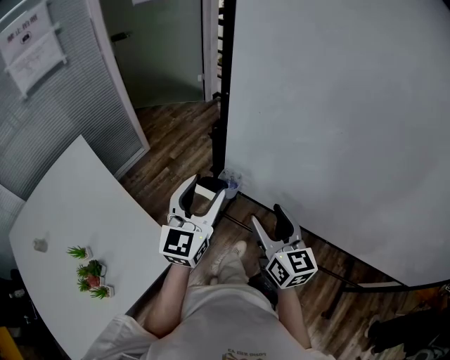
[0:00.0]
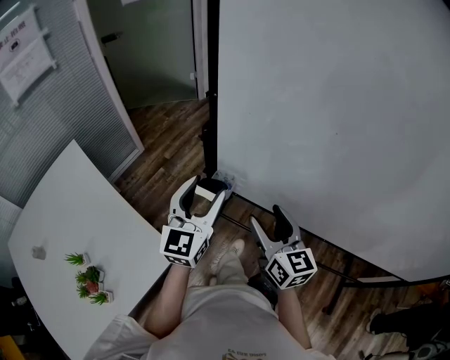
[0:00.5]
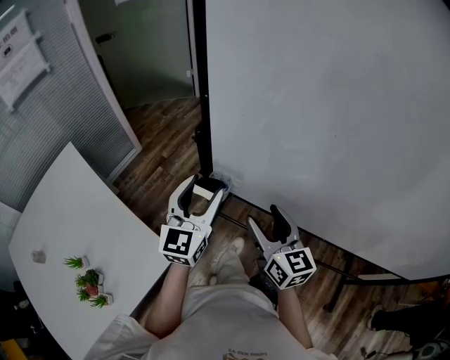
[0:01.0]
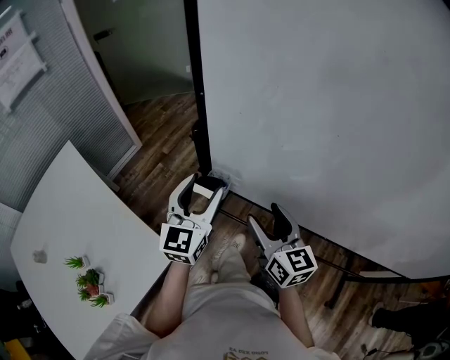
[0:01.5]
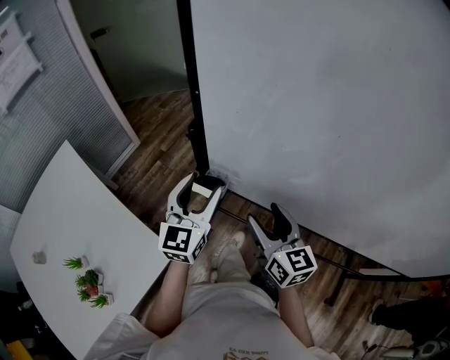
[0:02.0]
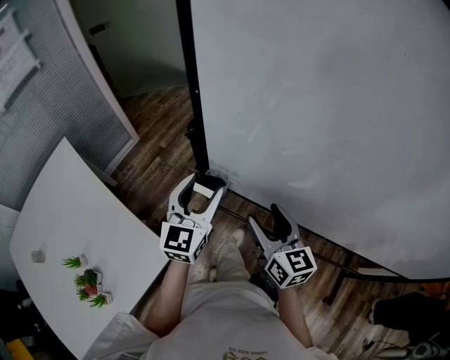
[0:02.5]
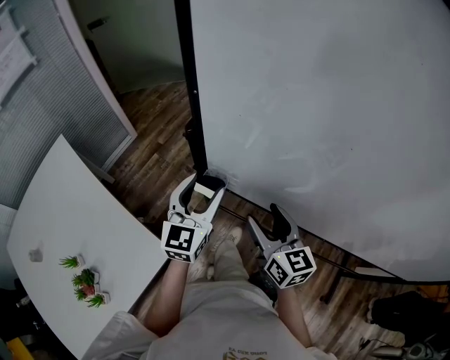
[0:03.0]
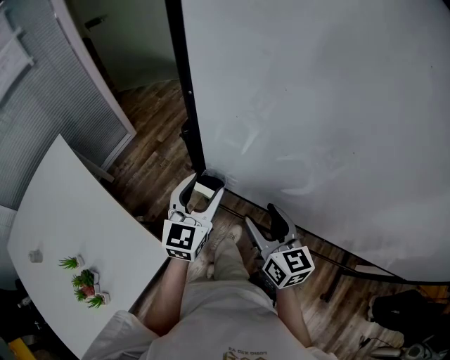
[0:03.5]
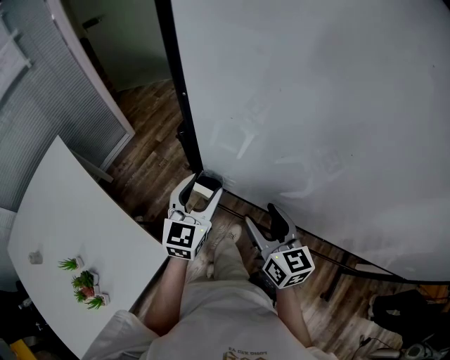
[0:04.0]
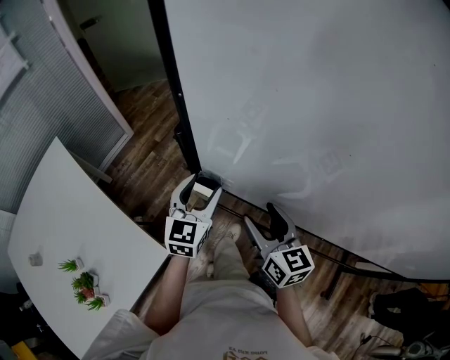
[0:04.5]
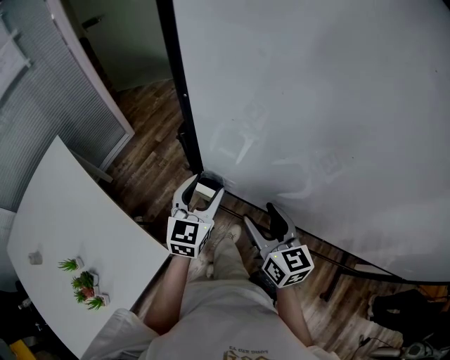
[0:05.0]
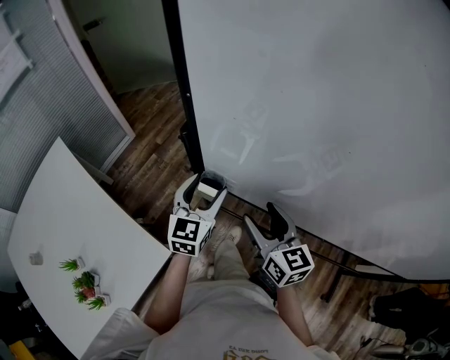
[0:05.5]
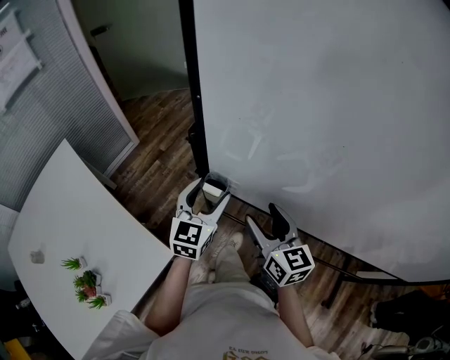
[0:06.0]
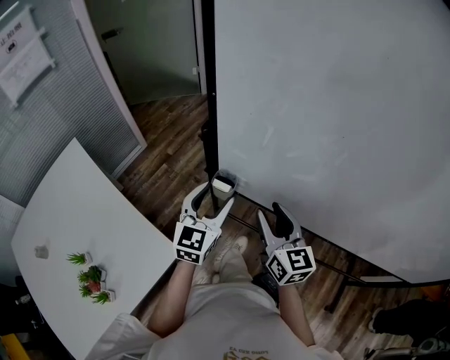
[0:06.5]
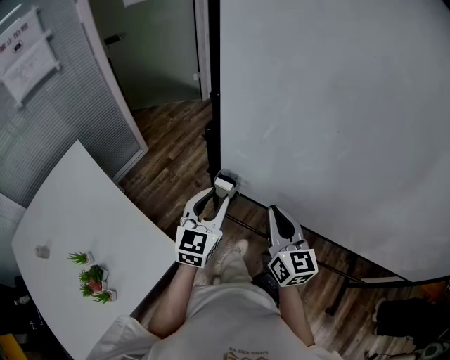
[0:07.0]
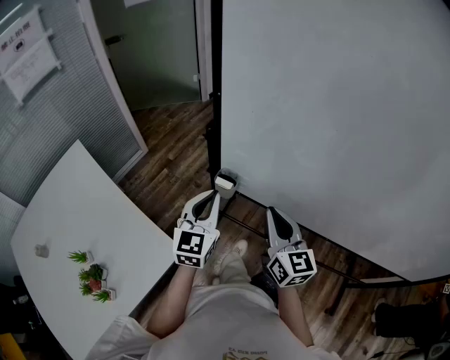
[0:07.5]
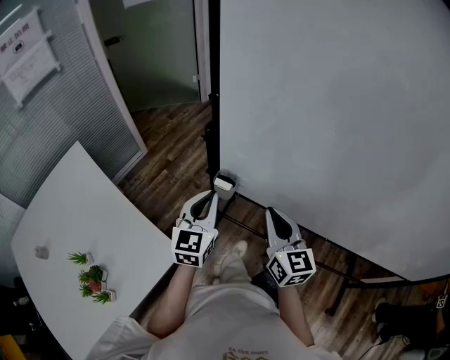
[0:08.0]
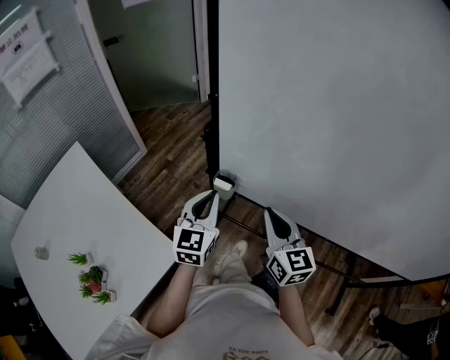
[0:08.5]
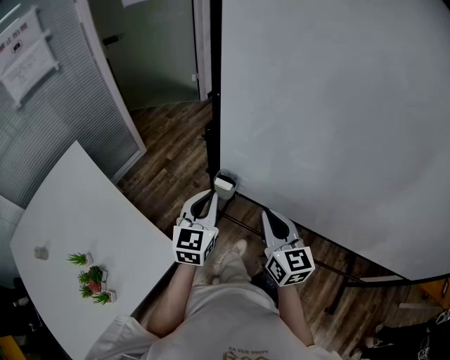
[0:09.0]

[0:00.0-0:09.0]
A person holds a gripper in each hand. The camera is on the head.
0:00.0 to 0:02.0: The left gripper changes place by roughly 5 cm.
0:02.0 to 0:04.5: The left gripper heads downward, covering approximately 5 cm.
0:04.5 to 0:07.0: The left gripper moves backward, some 10 cm; the right gripper is displaced upward by some 5 cm, and closes.
0:07.0 to 0:09.0: The left gripper closes.

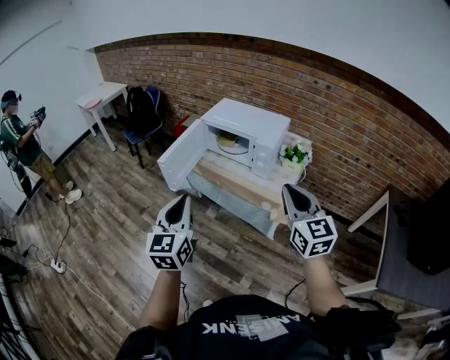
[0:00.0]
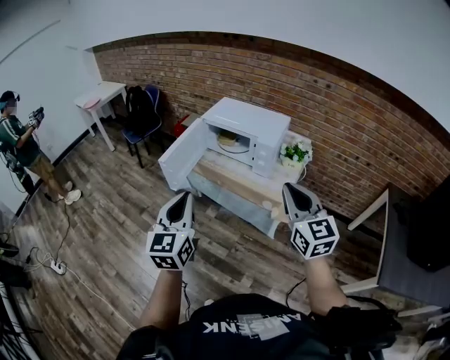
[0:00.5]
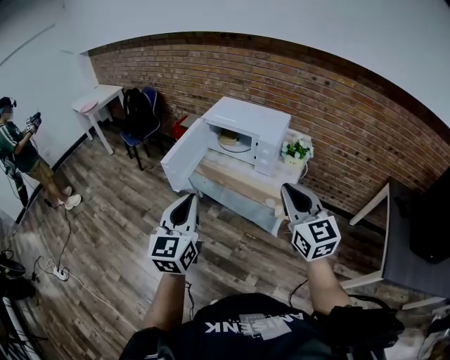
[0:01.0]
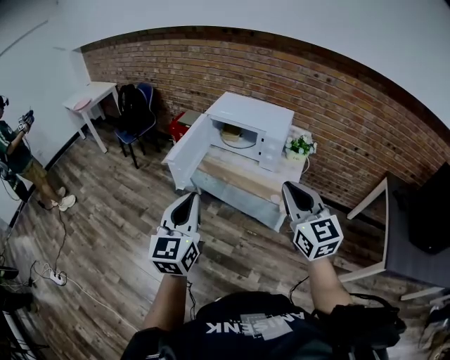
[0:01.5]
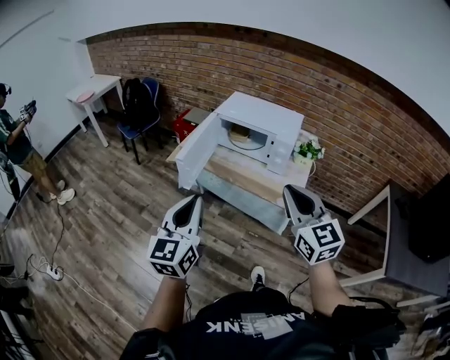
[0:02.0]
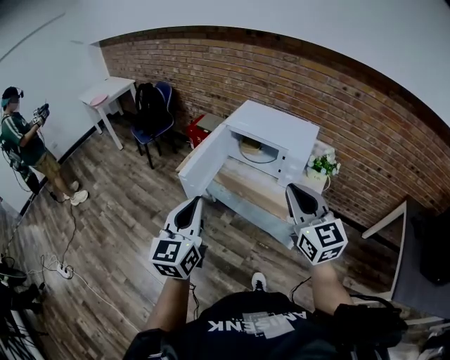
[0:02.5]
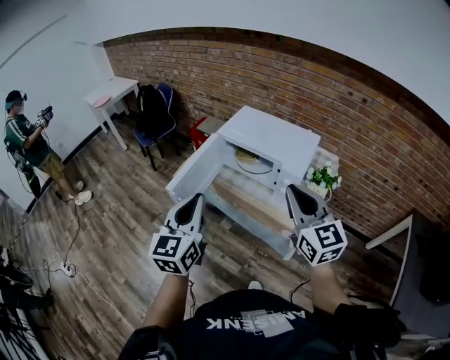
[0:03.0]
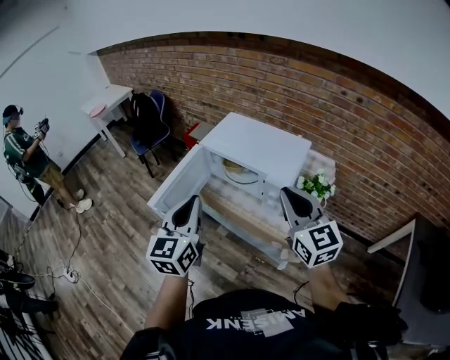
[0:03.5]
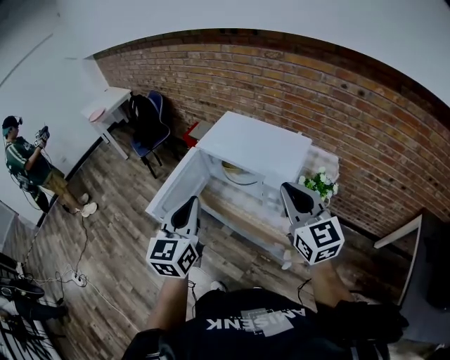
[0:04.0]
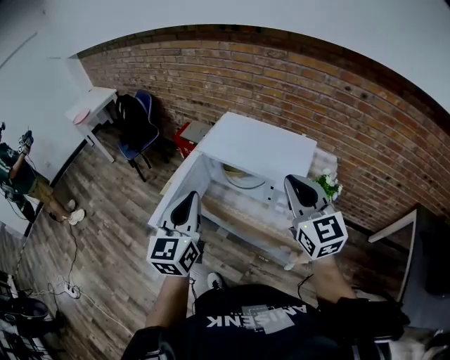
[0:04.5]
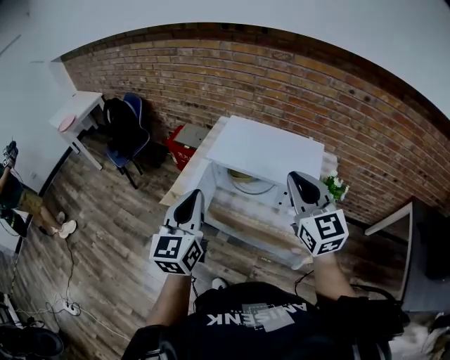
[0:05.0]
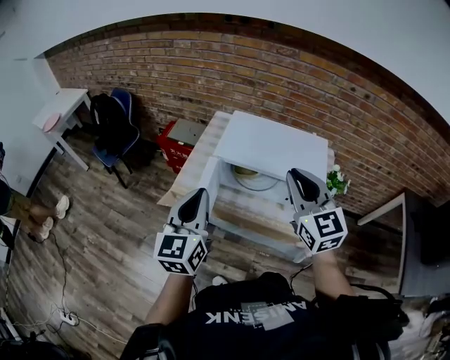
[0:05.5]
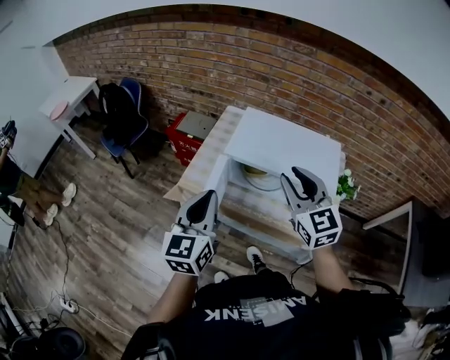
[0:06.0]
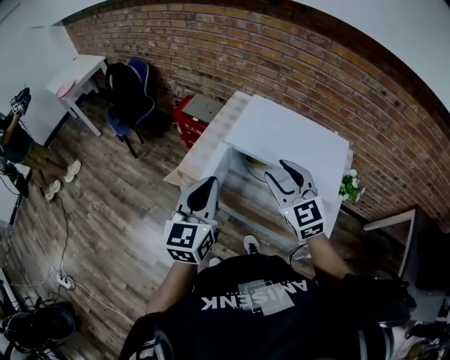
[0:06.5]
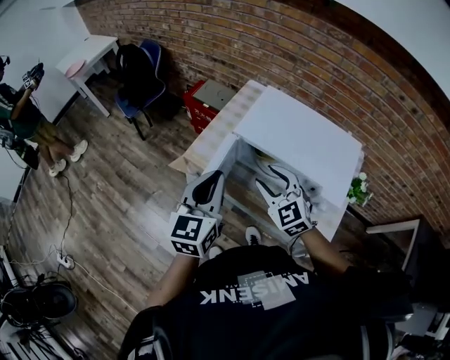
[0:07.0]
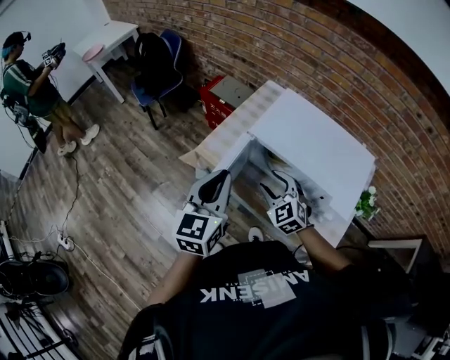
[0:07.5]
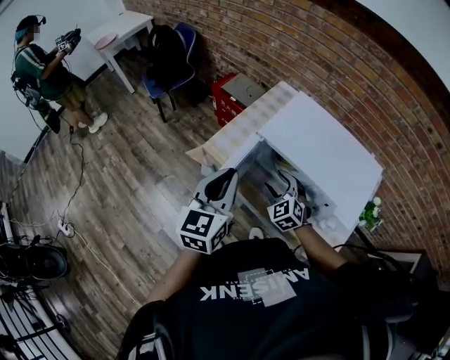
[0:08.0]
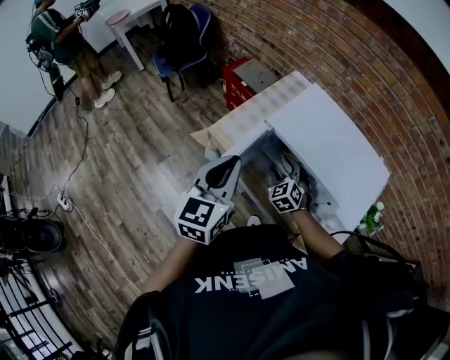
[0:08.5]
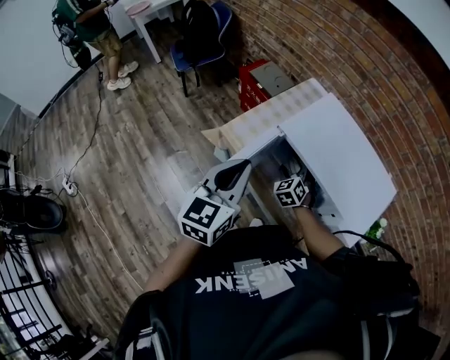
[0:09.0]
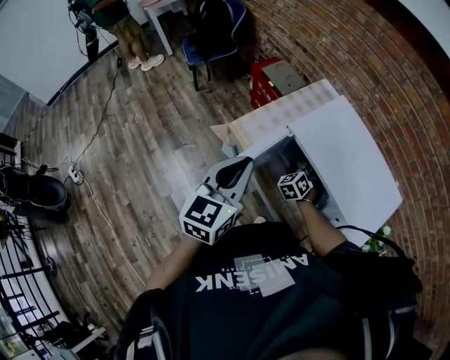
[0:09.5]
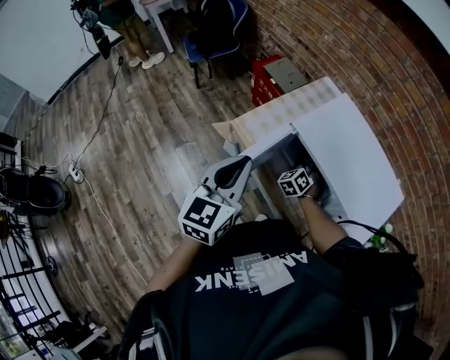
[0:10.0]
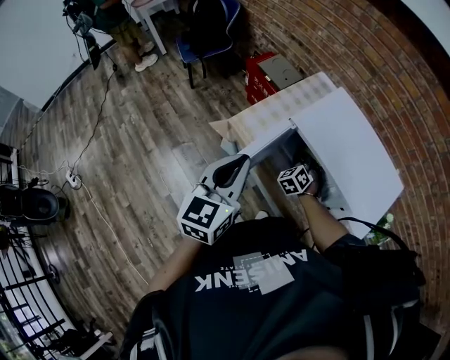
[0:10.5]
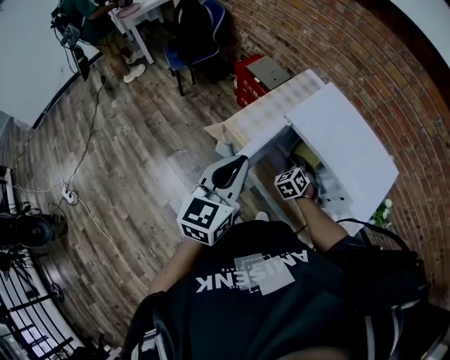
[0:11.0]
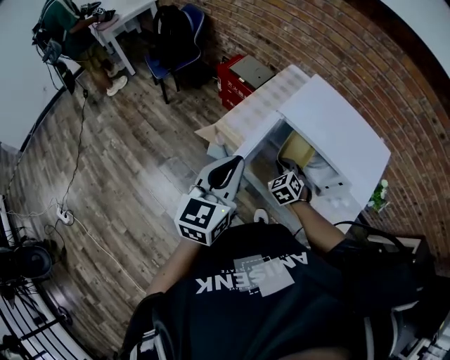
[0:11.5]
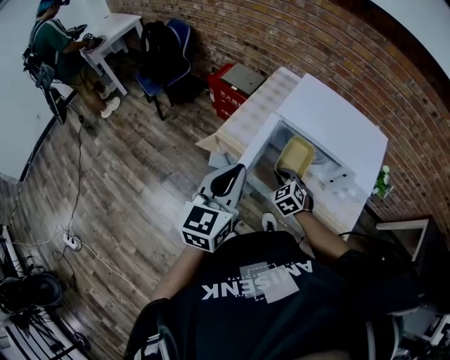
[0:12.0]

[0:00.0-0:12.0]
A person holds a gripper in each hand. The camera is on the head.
0:00.0 to 0:02.0: The grippers both shift to the left by some 15 cm.
0:02.0 to 0:04.0: Both grippers travel together forward and to the right, about 35 cm.
0:04.0 to 0:06.0: The grippers both shift to the left and forward by approximately 25 cm. The right gripper opens up.
0:06.0 to 0:08.0: The left gripper changes place by approximately 5 cm. The right gripper goes about 25 cm downward, turns by some 40 degrees, and opens.
0:08.0 to 0:10.0: The right gripper travels forward and downward by some 15 cm, changes its angle by approximately 20 degrees, and closes.
0:10.0 to 0:12.0: The left gripper is displaced backward by about 5 cm, while the right gripper moves backward, approximately 20 cm, and changes its angle by about 20 degrees.

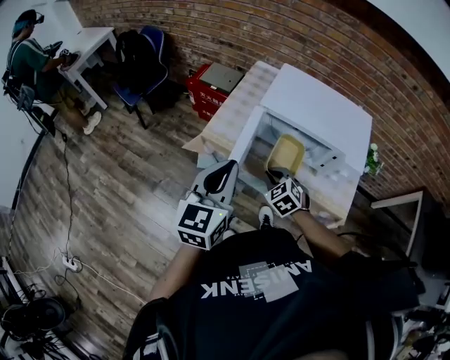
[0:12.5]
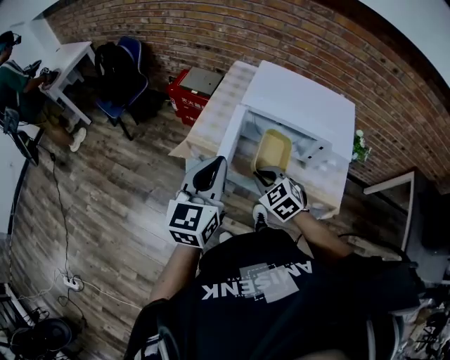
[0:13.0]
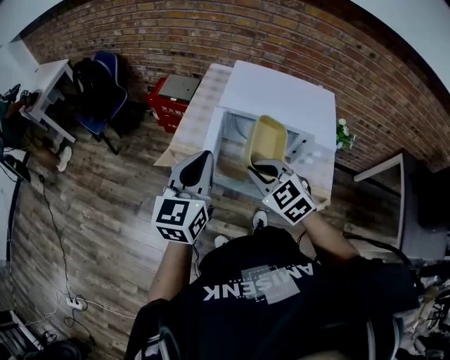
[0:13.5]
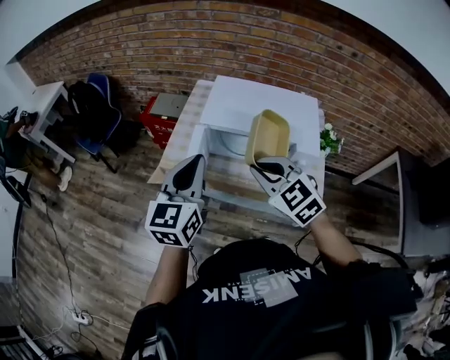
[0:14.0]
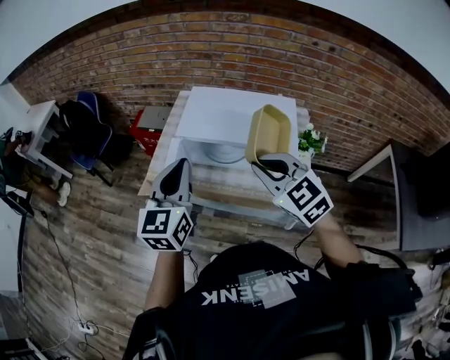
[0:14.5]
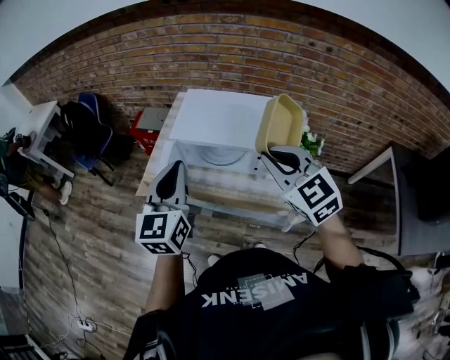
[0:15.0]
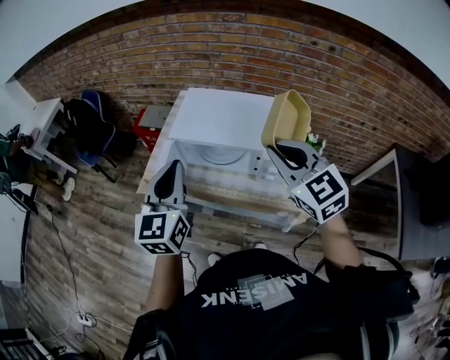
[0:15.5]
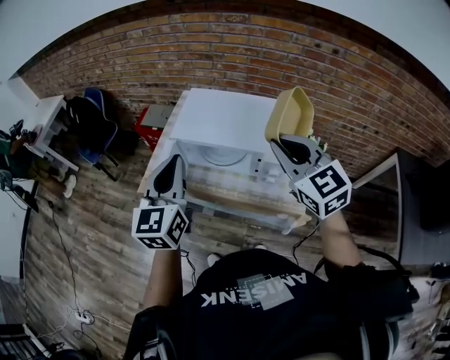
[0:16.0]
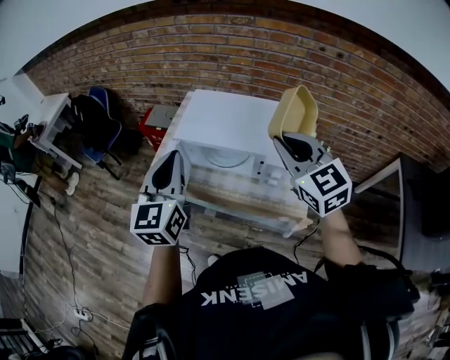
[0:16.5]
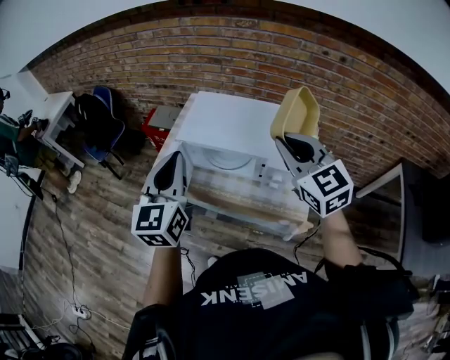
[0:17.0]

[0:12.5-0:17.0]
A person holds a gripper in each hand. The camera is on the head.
0:12.5 to 0:14.5: The left gripper shifts some 15 cm to the right and upward, while the right gripper moves upward and to the right, approximately 30 cm, and rotates approximately 20 degrees.
0:14.5 to 0:17.0: The left gripper ends up approximately 5 cm from where it was. The right gripper moves to the right and upward, about 15 cm.

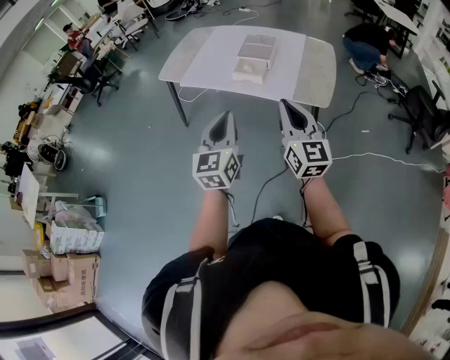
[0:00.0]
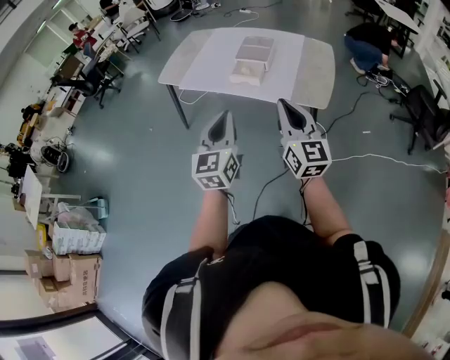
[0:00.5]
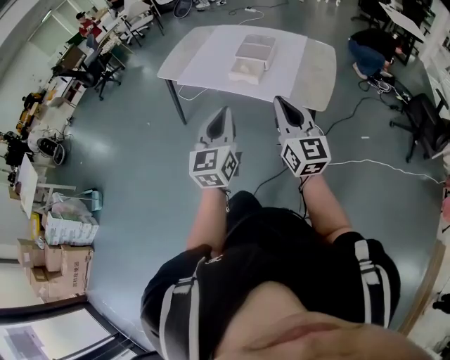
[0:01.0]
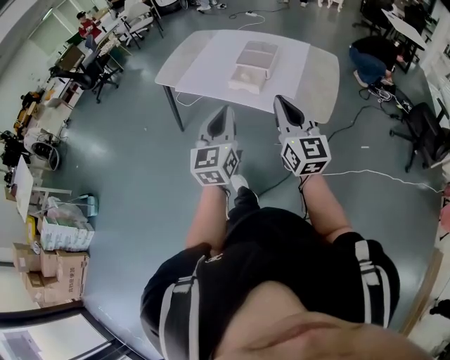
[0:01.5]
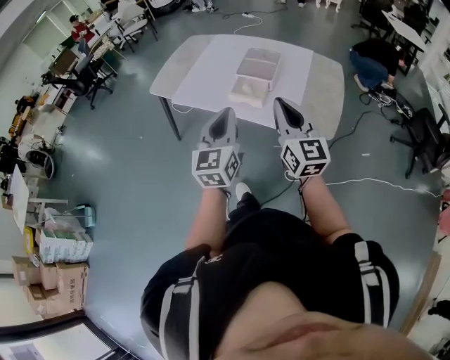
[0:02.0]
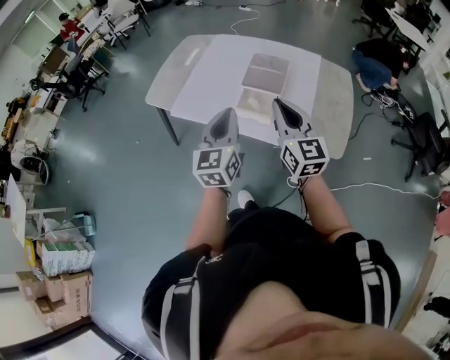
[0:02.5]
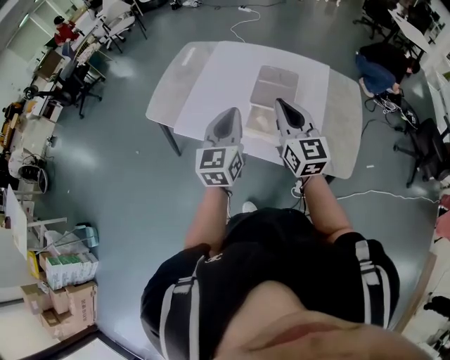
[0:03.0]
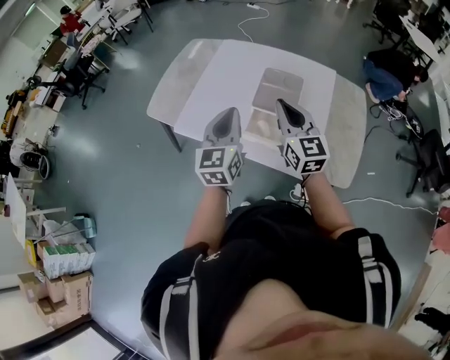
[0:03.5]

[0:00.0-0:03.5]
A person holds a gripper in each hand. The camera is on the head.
0:00.0 to 0:02.0: The two grippers go about 15 cm forward.
0:02.0 to 0:03.5: The grippers both shift forward by some 30 cm.
